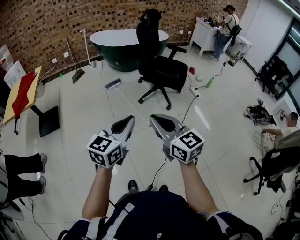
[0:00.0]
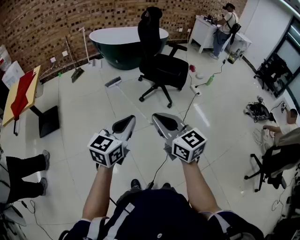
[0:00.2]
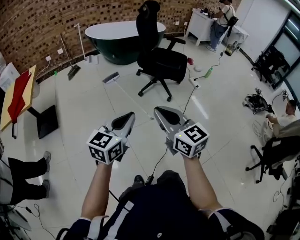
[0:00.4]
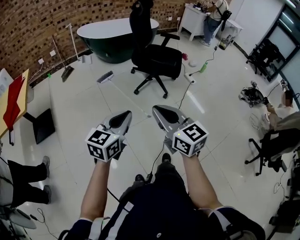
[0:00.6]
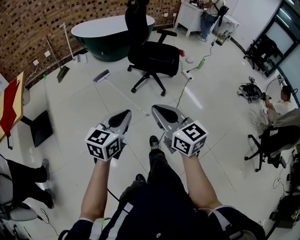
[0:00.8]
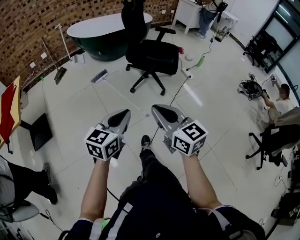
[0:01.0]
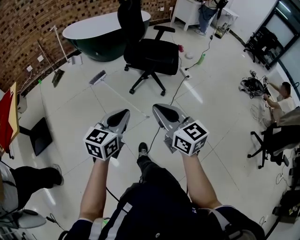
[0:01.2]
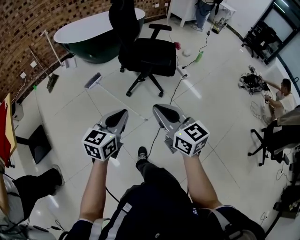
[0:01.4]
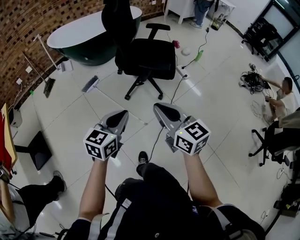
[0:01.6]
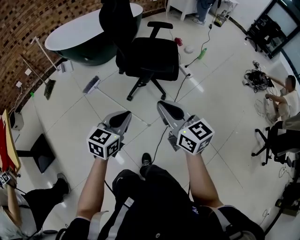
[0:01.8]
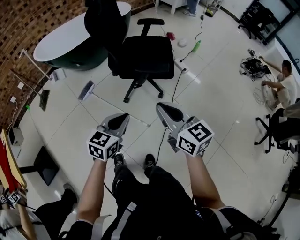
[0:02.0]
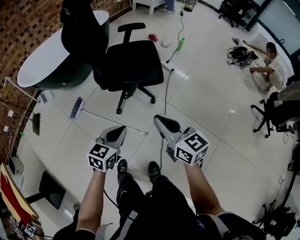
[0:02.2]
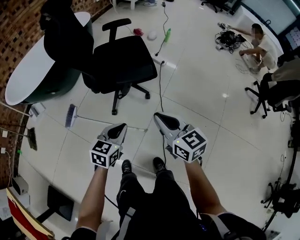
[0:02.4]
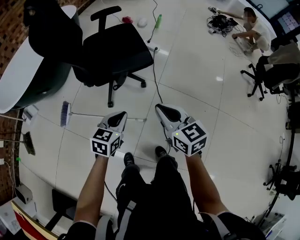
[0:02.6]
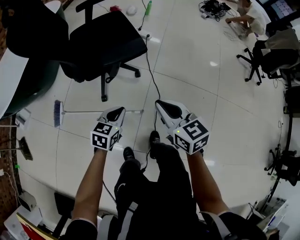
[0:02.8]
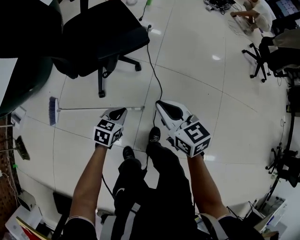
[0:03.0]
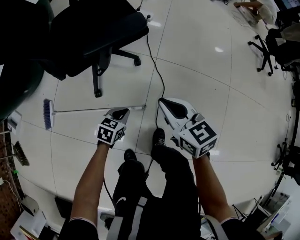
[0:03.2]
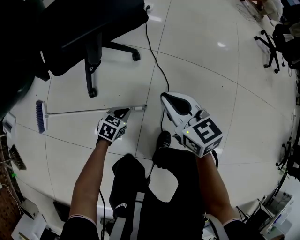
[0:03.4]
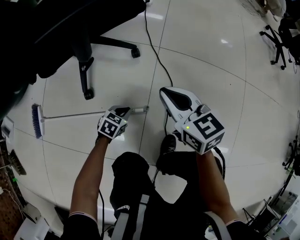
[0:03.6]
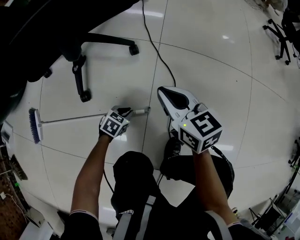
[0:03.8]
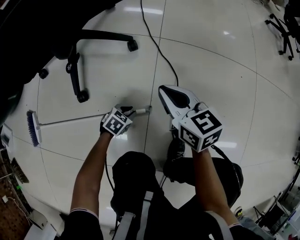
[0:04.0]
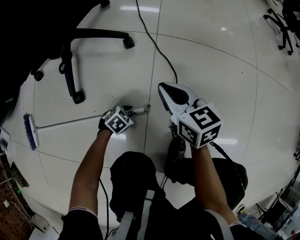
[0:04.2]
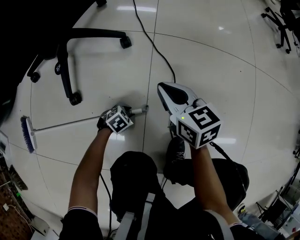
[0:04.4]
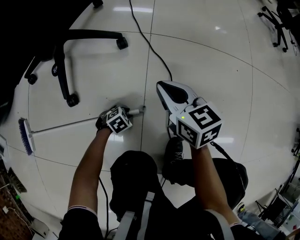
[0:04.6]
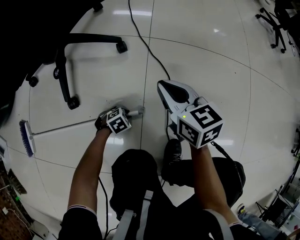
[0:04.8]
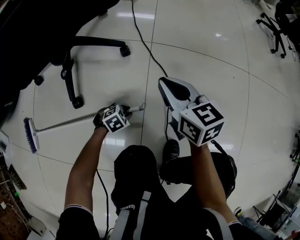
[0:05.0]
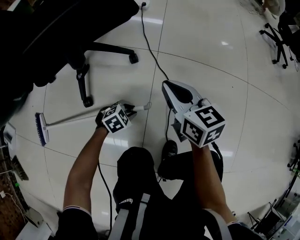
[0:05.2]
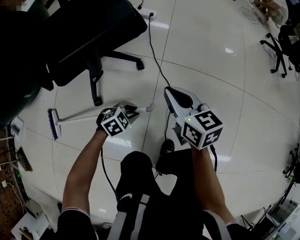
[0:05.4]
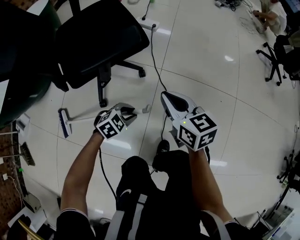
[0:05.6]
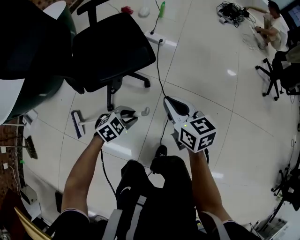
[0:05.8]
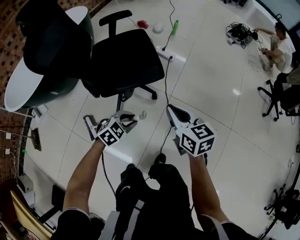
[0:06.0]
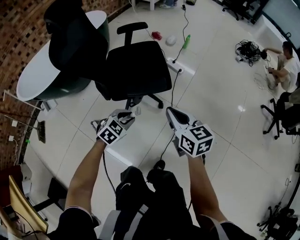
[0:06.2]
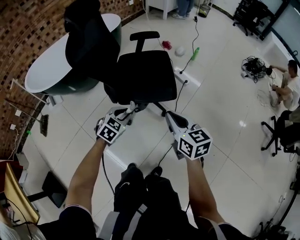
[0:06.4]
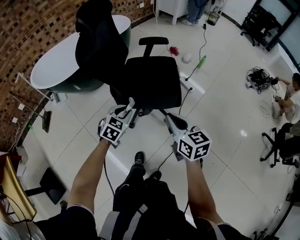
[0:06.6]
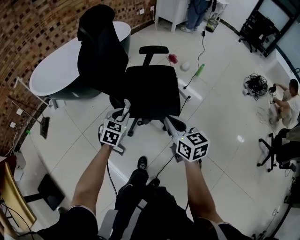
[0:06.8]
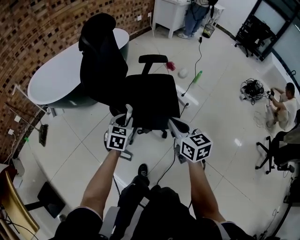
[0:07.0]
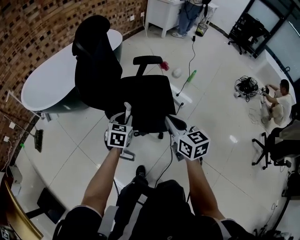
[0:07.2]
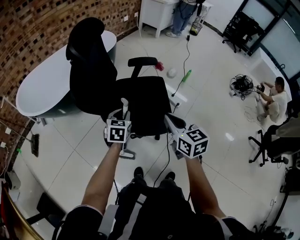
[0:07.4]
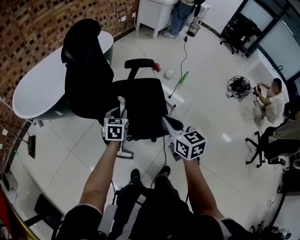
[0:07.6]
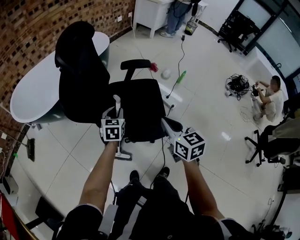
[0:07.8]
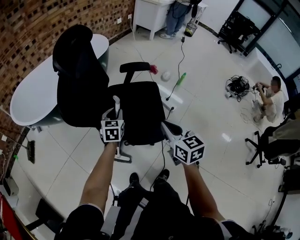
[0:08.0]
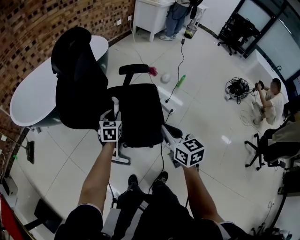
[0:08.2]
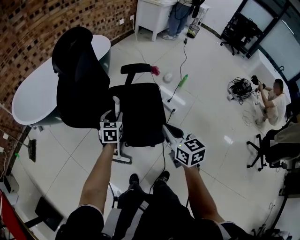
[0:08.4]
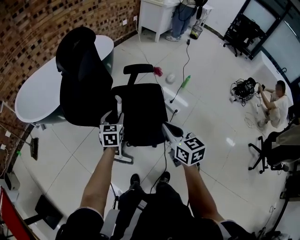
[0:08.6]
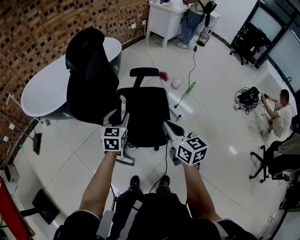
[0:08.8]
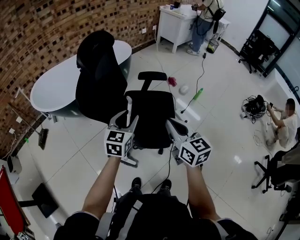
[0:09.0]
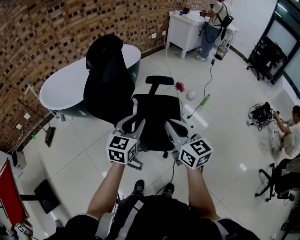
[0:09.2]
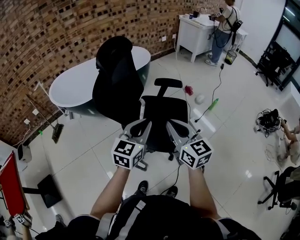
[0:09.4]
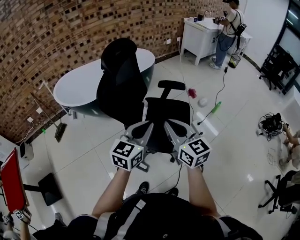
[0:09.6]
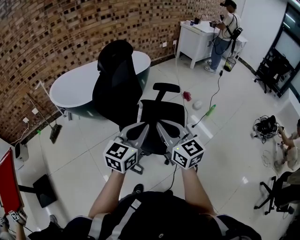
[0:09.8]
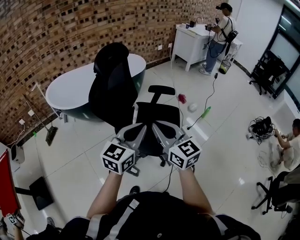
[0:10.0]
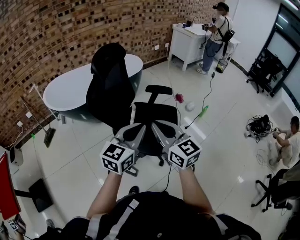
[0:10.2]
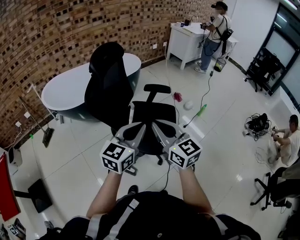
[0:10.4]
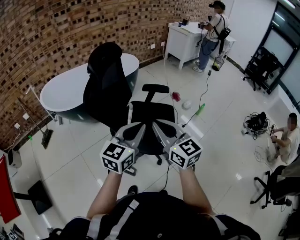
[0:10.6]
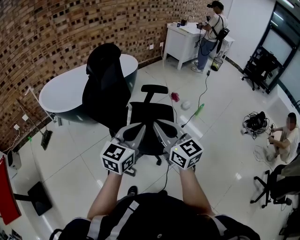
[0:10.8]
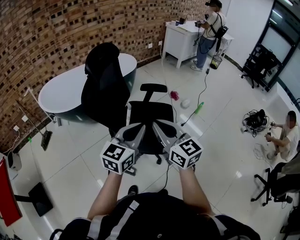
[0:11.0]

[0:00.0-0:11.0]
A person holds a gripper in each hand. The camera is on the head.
0:00.0 to 0:01.6: The left gripper heads forward and downward, covering approximately 30 cm, while the right gripper is displaced forward by roughly 30 cm.
0:01.6 to 0:03.2: The two grippers go some 40 cm downward. The left gripper swivels about 60 degrees; the right gripper changes its angle by some 40 degrees.
0:03.2 to 0:04.8: The grippers both shift downward by approximately 35 cm. The left gripper turns by approximately 50 degrees, and opens up.
0:04.8 to 0:06.2: Both grippers move upward, approximately 60 cm. The left gripper rotates roughly 50 degrees, while the right gripper changes its angle by about 20 degrees.
0:06.2 to 0:07.8: The two grippers go about 25 cm forward. The left gripper turns by some 50 degrees.
0:07.8 to 0:09.4: The left gripper is displaced upward and backward by roughly 25 cm, and swivels roughly 20 degrees. The right gripper is displaced upward by about 10 cm, and rotates roughly 30 degrees.
0:09.4 to 0:11.0: The left gripper moves some 5 cm.

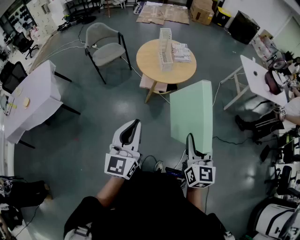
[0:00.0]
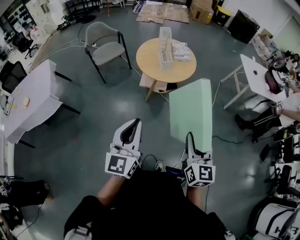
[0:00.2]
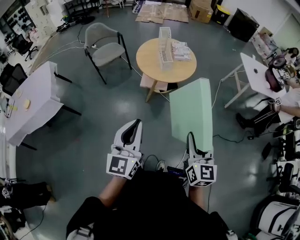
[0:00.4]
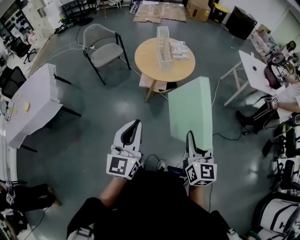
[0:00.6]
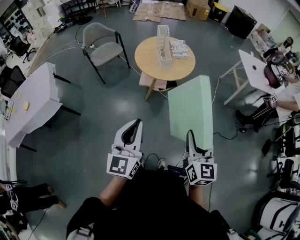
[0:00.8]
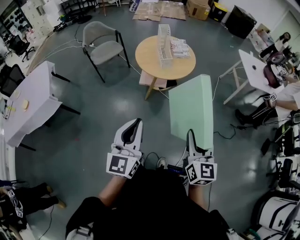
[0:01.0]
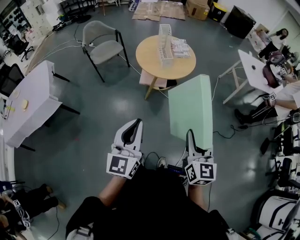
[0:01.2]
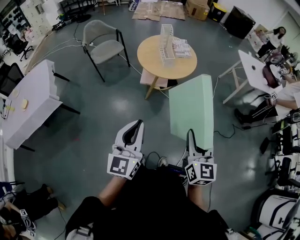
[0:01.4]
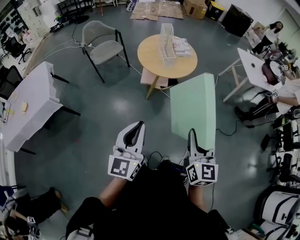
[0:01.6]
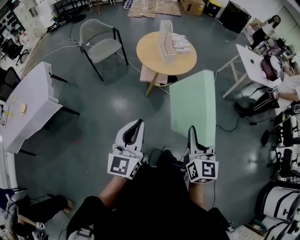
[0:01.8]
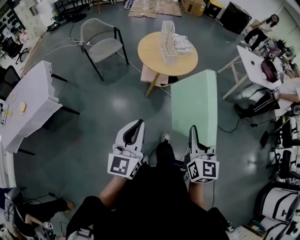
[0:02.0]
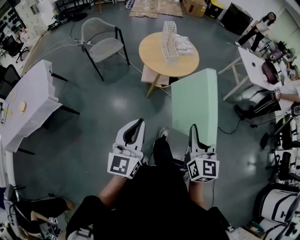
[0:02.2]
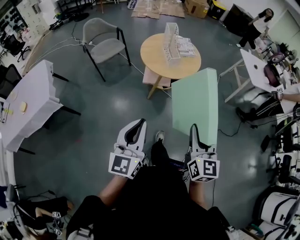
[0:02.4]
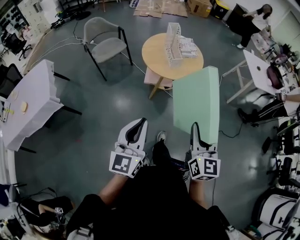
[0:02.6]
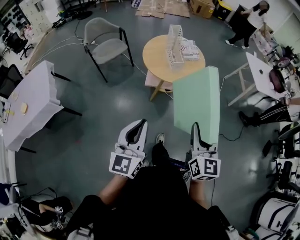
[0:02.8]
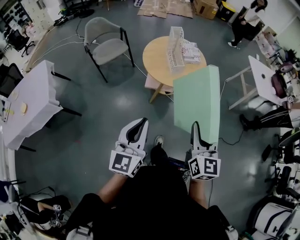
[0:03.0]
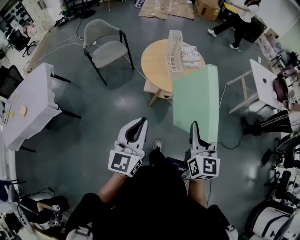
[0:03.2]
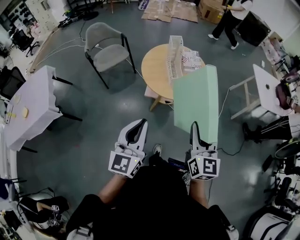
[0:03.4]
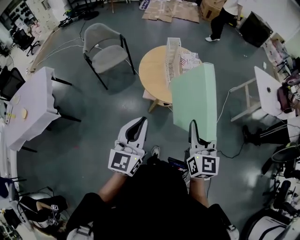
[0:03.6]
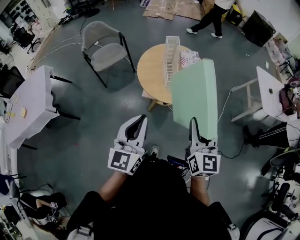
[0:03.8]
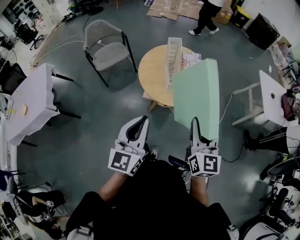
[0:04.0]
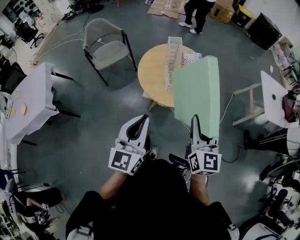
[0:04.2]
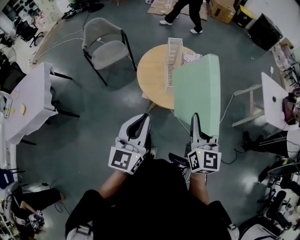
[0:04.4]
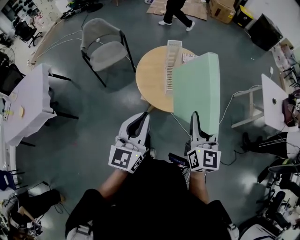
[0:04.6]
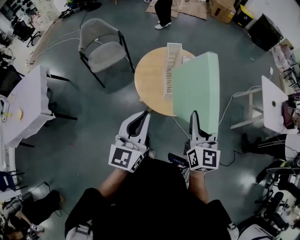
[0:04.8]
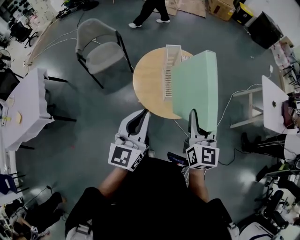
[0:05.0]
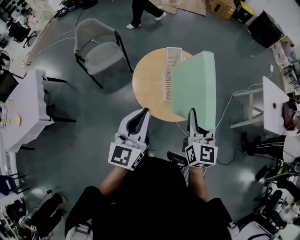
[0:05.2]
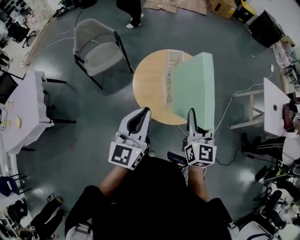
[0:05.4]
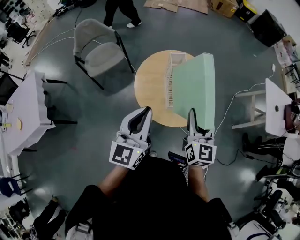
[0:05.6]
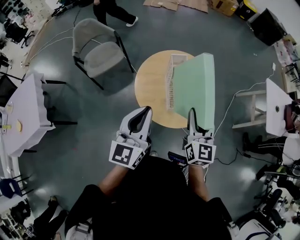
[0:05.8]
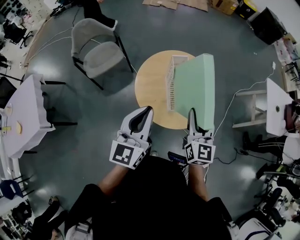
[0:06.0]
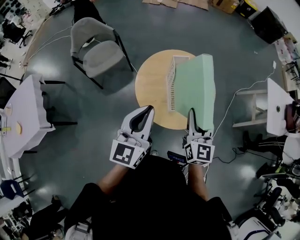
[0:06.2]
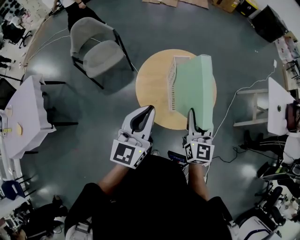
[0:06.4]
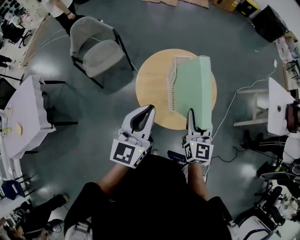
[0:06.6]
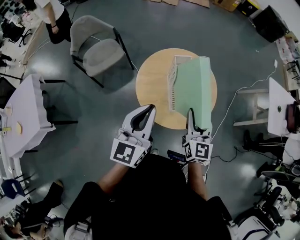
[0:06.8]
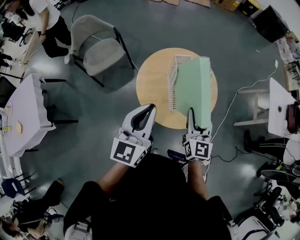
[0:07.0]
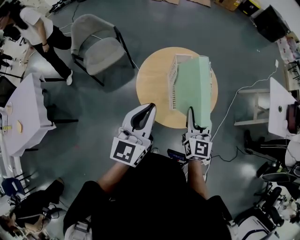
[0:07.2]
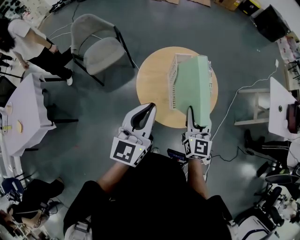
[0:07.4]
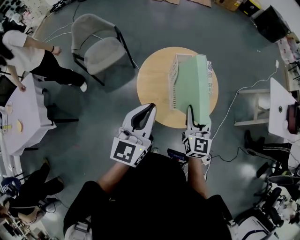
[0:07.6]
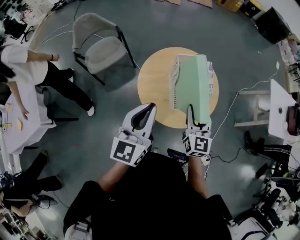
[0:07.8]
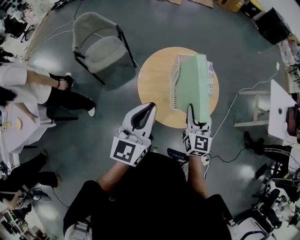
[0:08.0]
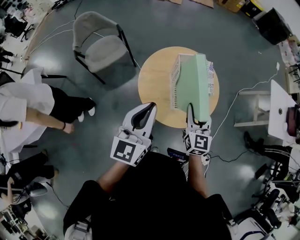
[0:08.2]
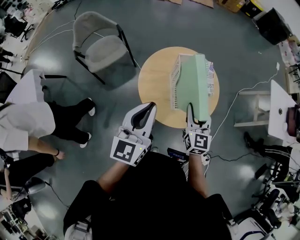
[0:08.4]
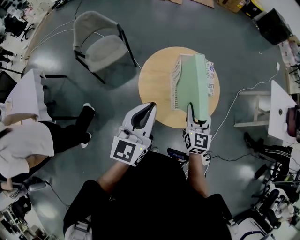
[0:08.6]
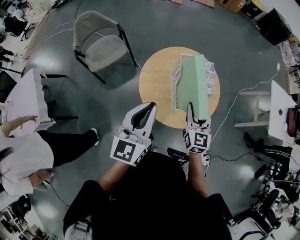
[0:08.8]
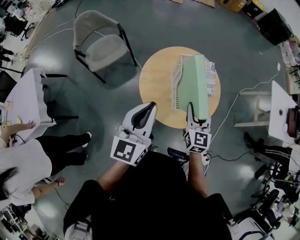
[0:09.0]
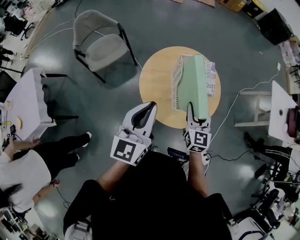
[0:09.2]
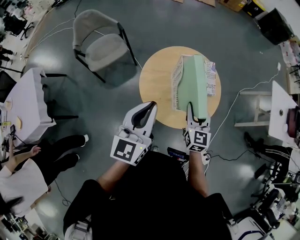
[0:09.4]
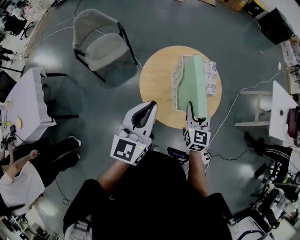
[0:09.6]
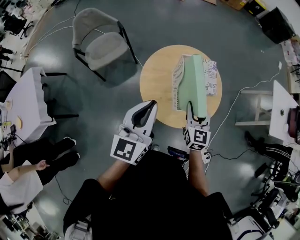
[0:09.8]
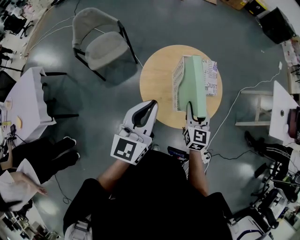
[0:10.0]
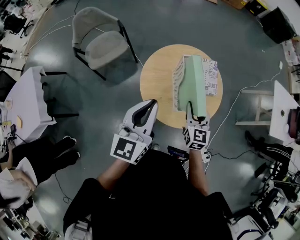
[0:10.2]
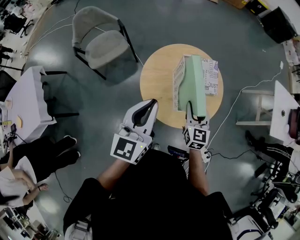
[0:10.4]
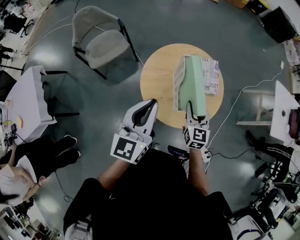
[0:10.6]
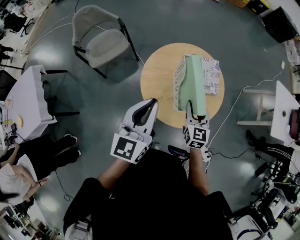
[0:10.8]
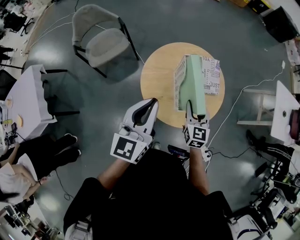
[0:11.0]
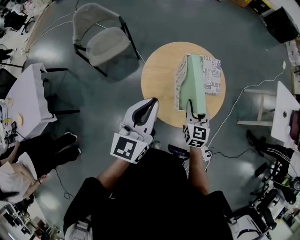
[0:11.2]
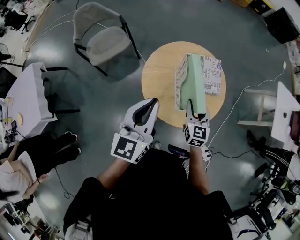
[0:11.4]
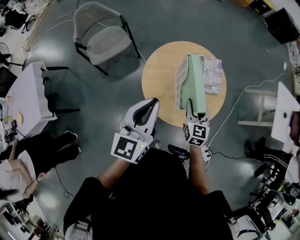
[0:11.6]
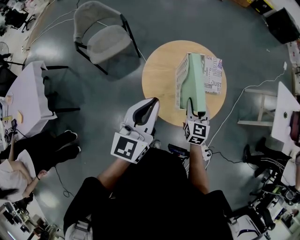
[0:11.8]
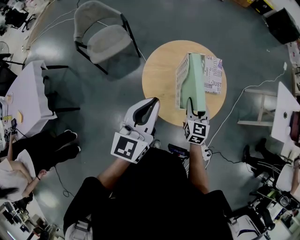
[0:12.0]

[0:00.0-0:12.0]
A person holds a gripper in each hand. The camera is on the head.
0:00.0 to 0:01.6: Both grippers travel together to the left, roughly 5 cm.
0:01.6 to 0:03.0: Both grippers move forward, roughly 15 cm.
0:03.0 to 0:04.4: Both grippers travel together forward, about 25 cm.
0:04.4 to 0:06.0: Both grippers move forward, approximately 25 cm.
0:06.0 to 0:07.6: The right gripper moves downward, about 5 cm.
0:07.6 to 0:09.0: The grippers move only a little.
0:09.0 to 0:10.4: The right gripper changes place by approximately 5 cm.
0:10.4 to 0:12.0: The grippers stay close to where they were, moving slightly.

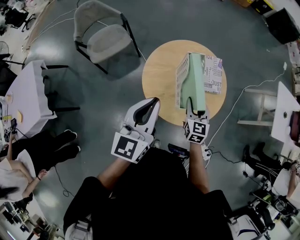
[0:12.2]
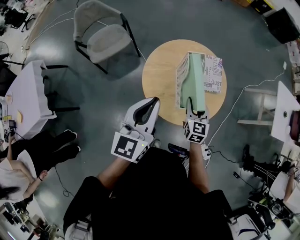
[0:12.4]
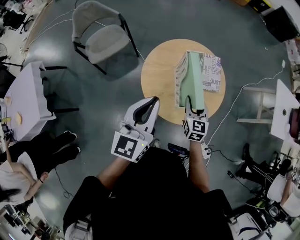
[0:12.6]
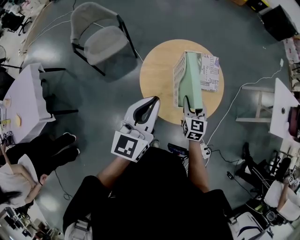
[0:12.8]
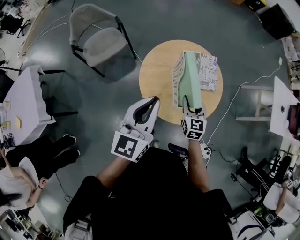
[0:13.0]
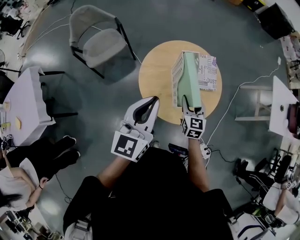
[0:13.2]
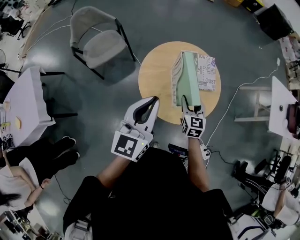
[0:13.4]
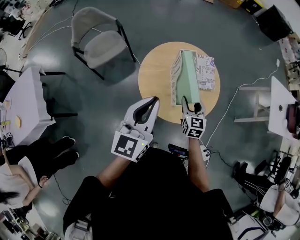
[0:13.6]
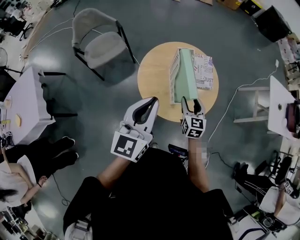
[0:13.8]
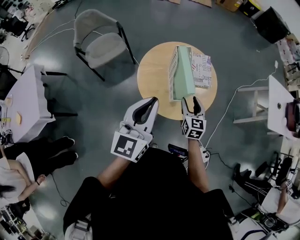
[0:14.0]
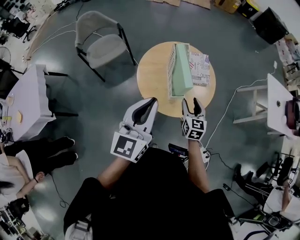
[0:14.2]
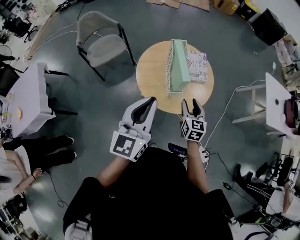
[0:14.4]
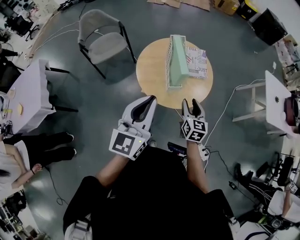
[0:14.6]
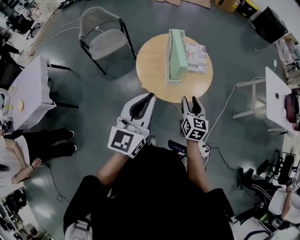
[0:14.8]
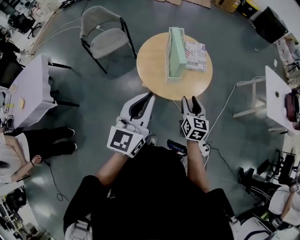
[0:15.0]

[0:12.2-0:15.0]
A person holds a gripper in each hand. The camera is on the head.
0:12.2 to 0:13.6: The grippers move only a little.
0:13.6 to 0:15.0: The two grippers go about 20 cm backward.
